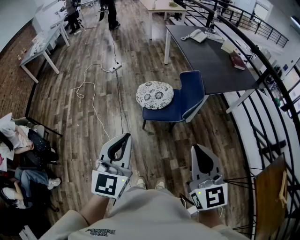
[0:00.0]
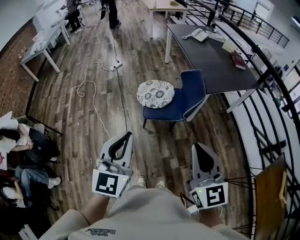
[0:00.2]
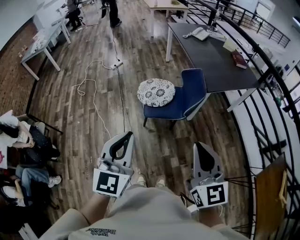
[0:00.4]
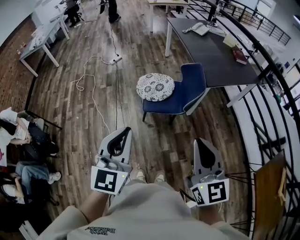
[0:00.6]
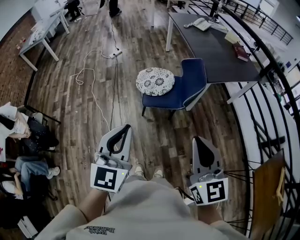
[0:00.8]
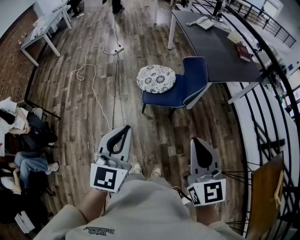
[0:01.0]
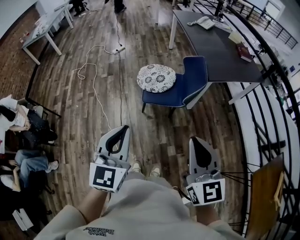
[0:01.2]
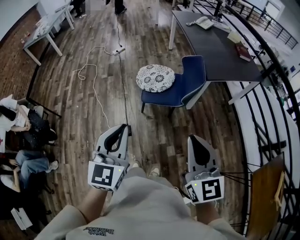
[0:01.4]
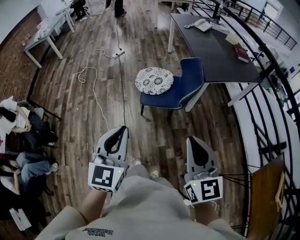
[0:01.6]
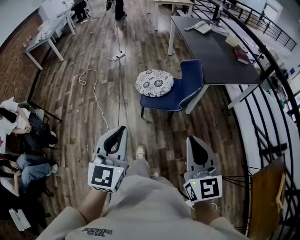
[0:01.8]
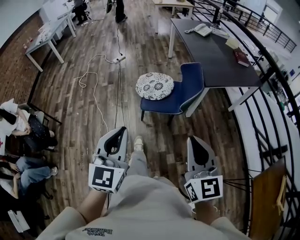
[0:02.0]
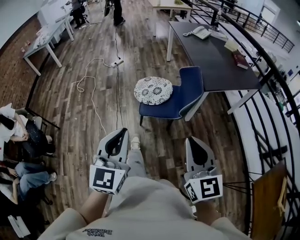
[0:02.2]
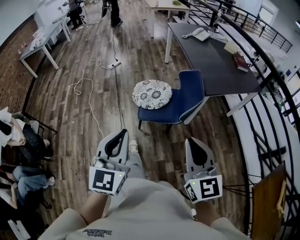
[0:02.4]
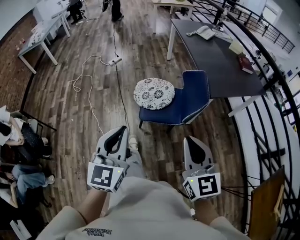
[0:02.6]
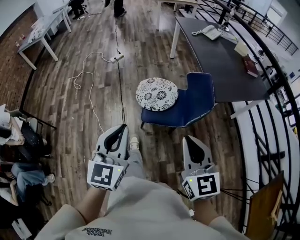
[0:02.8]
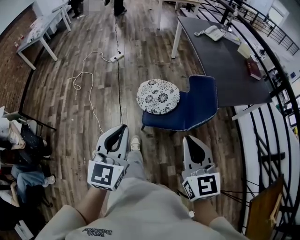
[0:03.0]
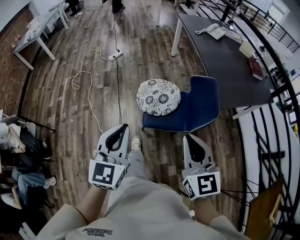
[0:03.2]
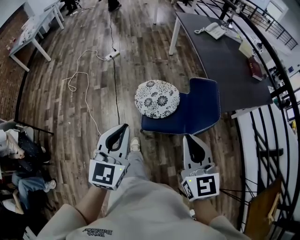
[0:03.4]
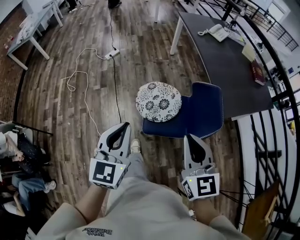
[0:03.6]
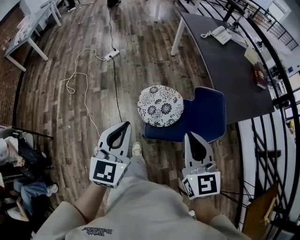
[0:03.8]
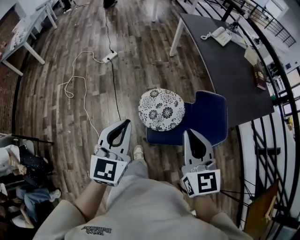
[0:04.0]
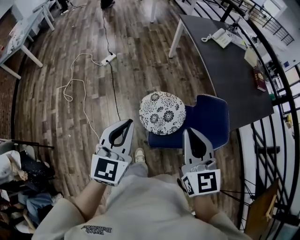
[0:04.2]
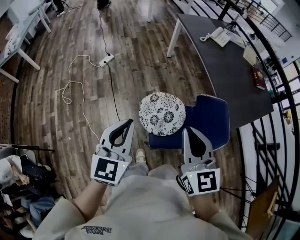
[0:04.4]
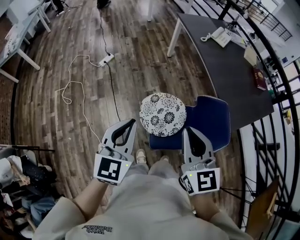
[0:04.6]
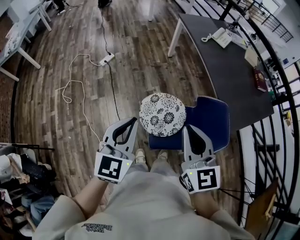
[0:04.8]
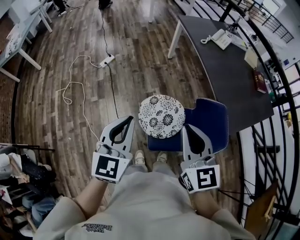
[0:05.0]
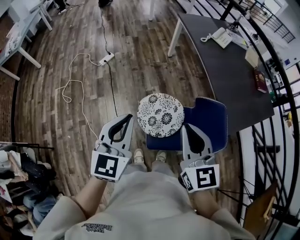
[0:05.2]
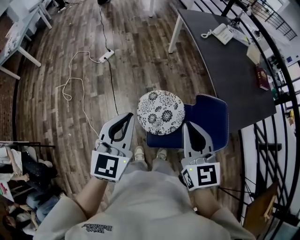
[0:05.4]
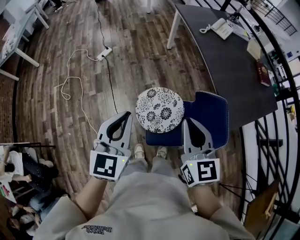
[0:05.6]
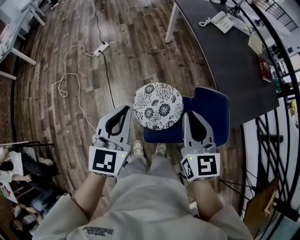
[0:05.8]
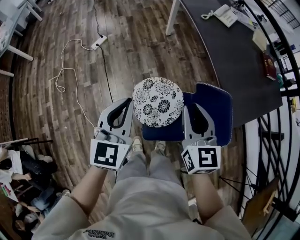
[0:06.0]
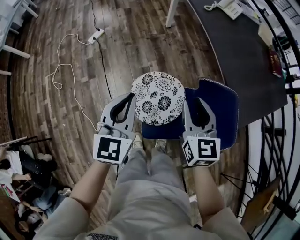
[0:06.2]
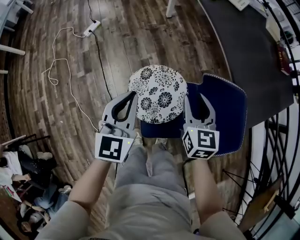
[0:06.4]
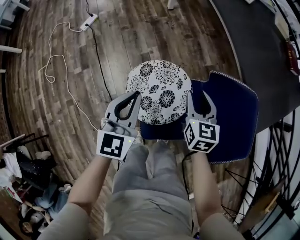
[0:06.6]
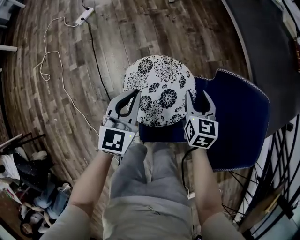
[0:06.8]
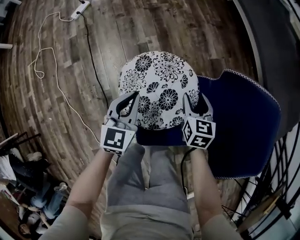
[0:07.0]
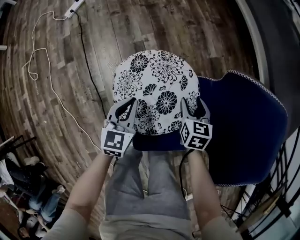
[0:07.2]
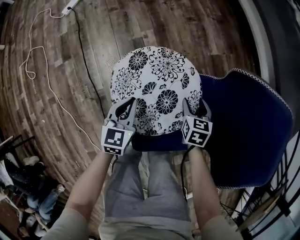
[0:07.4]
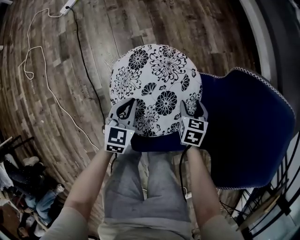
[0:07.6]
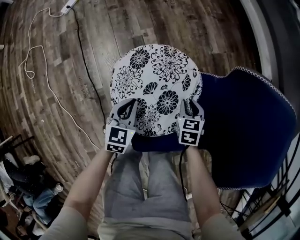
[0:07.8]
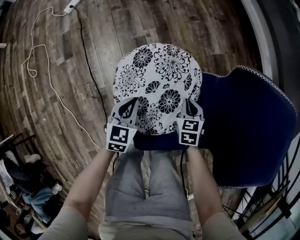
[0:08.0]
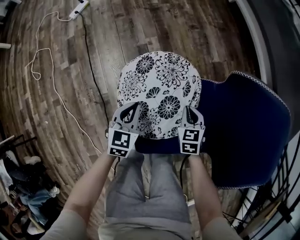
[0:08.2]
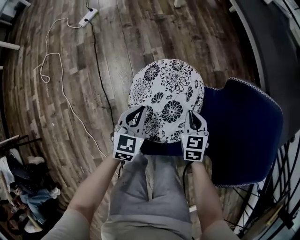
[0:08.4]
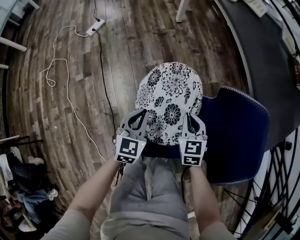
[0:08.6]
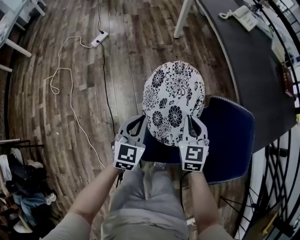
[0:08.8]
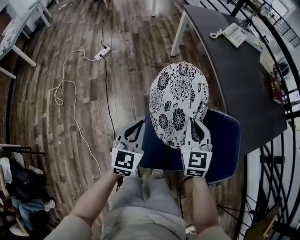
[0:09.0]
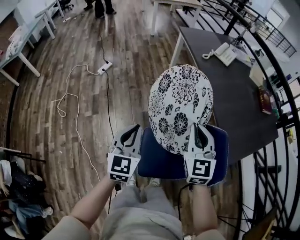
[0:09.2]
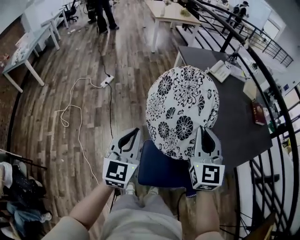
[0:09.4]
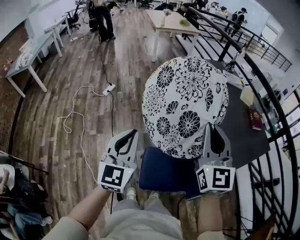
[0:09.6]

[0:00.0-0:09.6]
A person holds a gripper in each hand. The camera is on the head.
0:00.0 to 0:01.6: The right gripper moves roughly 5 cm. Meanwhile the left gripper ends up about 10 cm from where it was.
0:01.6 to 0:03.2: The grippers both shift forward by about 30 cm.
0:03.2 to 0:04.8: The left gripper shifts about 25 cm forward, while the right gripper heads forward and to the left, covering some 30 cm.
0:04.8 to 0:06.4: The grippers both shift downward, forward and to the right by some 30 cm. The right gripper swivels approximately 20 degrees, and opens its fingers.
0:06.4 to 0:08.0: The two grippers go about 40 cm downward. The left gripper rotates approximately 20 degrees; the right gripper changes its angle by roughly 30 degrees, and closes its fingers.
0:08.0 to 0:09.6: The left gripper moves to the left, roughly 5 cm, and reaches approximately 25 cm upward, then returns; the right gripper goes roughly 15 cm upward, and changes its angle by some 20 degrees.

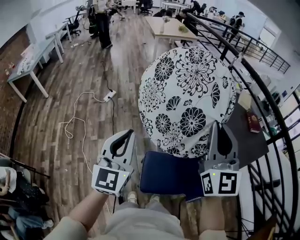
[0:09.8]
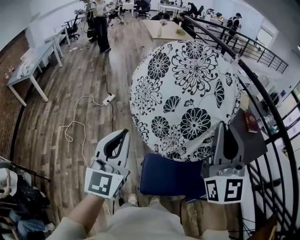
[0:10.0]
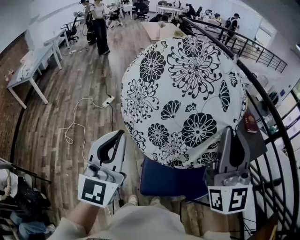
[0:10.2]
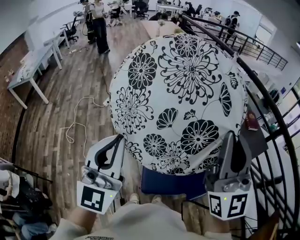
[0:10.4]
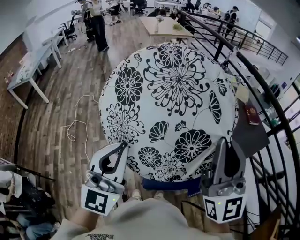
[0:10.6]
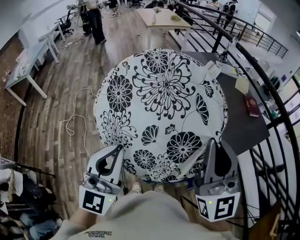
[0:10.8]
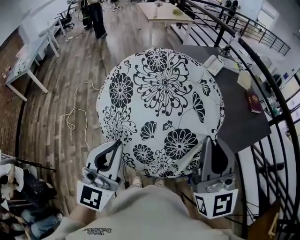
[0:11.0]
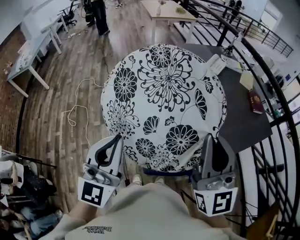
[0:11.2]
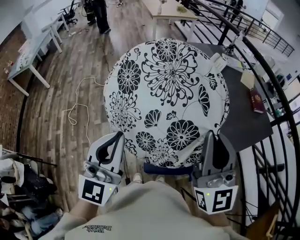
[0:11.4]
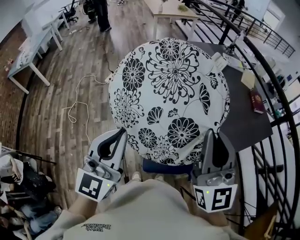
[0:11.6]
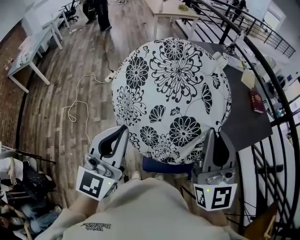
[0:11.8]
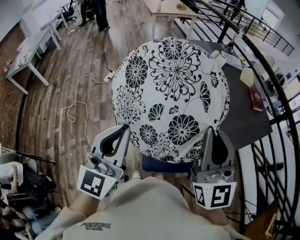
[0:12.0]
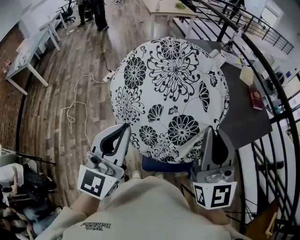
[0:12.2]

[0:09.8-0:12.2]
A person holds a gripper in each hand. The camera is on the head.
0:09.8 to 0:11.0: The left gripper travels forward by approximately 10 cm, and changes its angle by about 30 degrees.
0:11.0 to 0:12.2: The grippers make only small movements.

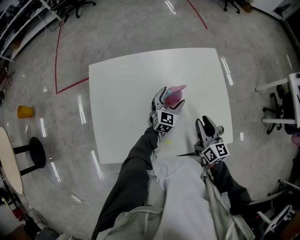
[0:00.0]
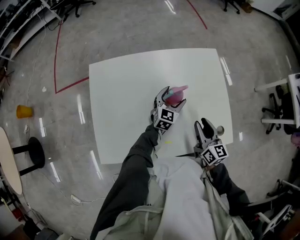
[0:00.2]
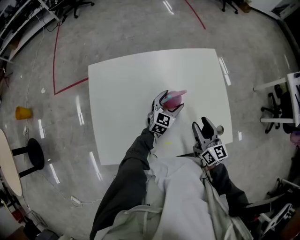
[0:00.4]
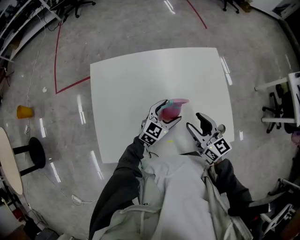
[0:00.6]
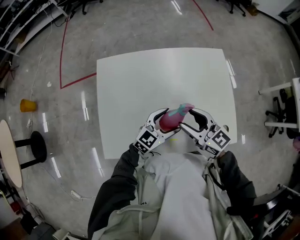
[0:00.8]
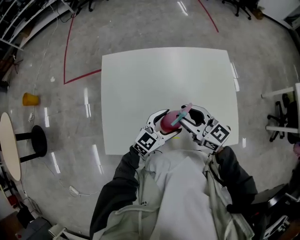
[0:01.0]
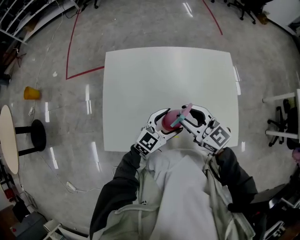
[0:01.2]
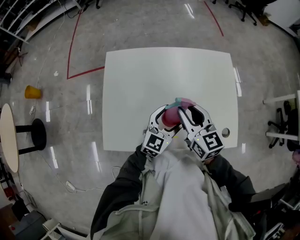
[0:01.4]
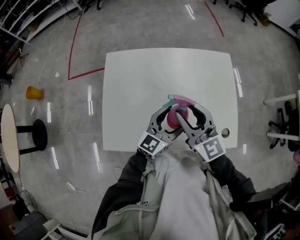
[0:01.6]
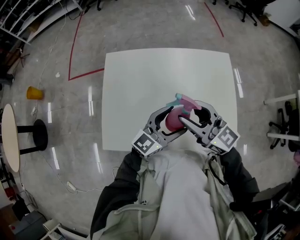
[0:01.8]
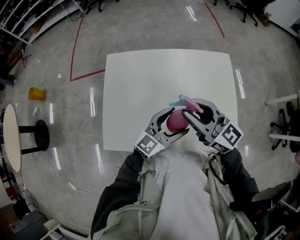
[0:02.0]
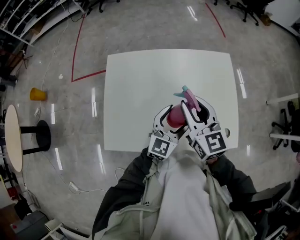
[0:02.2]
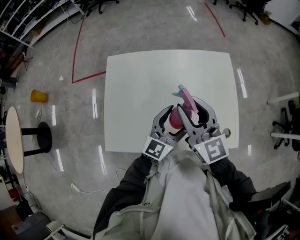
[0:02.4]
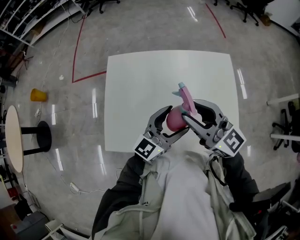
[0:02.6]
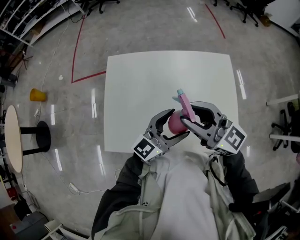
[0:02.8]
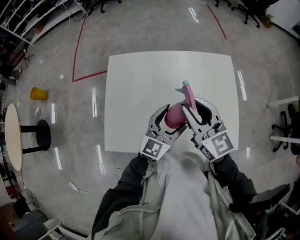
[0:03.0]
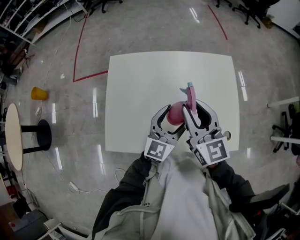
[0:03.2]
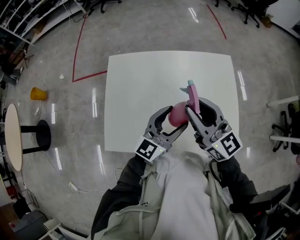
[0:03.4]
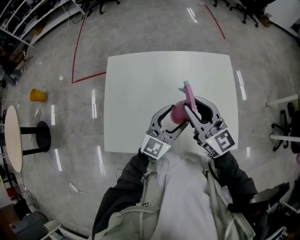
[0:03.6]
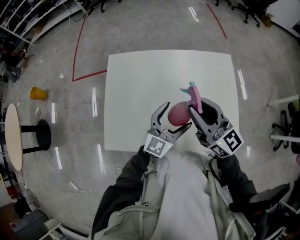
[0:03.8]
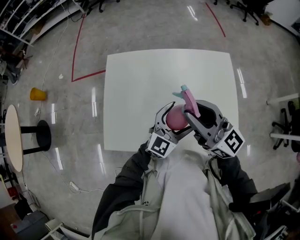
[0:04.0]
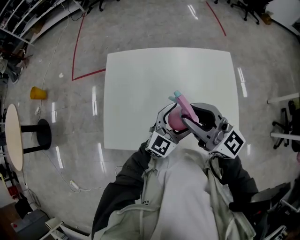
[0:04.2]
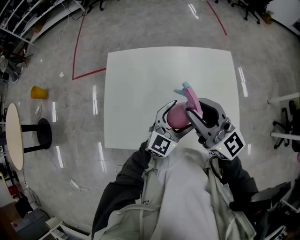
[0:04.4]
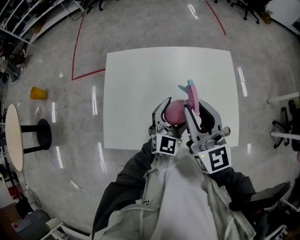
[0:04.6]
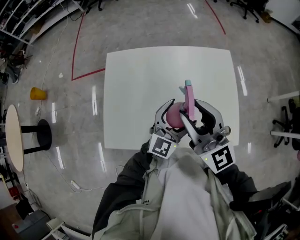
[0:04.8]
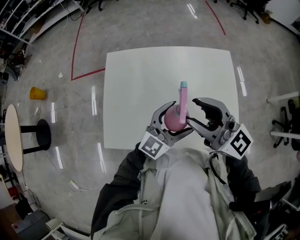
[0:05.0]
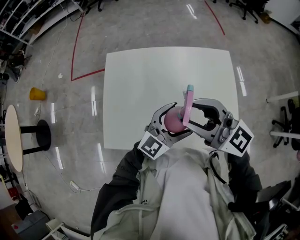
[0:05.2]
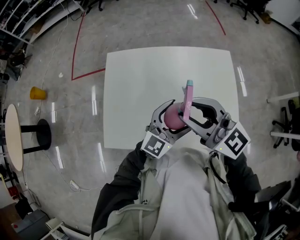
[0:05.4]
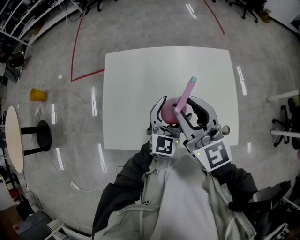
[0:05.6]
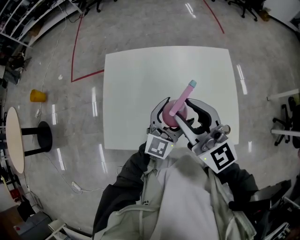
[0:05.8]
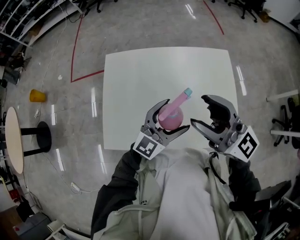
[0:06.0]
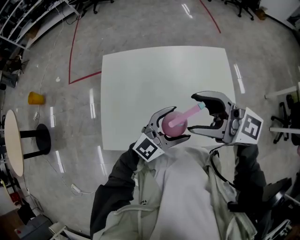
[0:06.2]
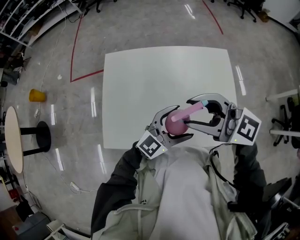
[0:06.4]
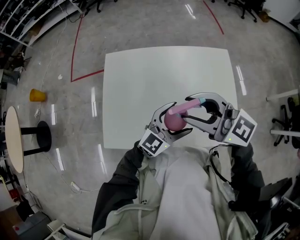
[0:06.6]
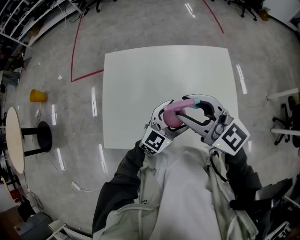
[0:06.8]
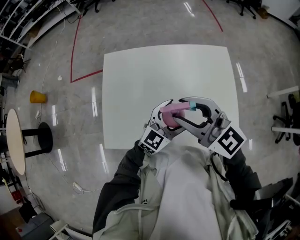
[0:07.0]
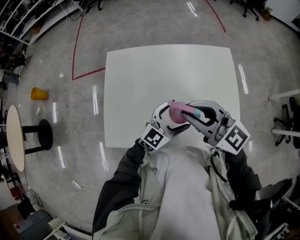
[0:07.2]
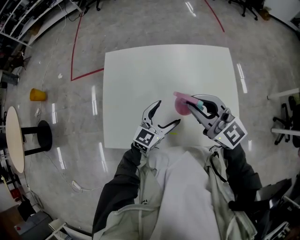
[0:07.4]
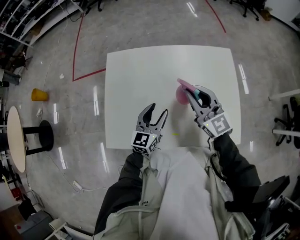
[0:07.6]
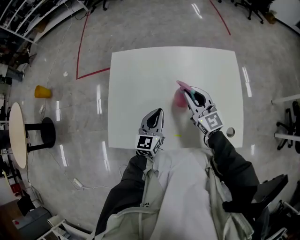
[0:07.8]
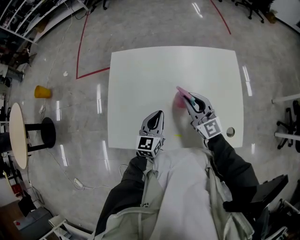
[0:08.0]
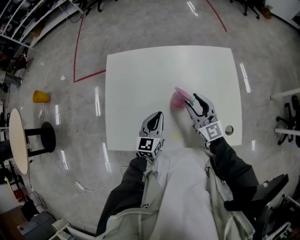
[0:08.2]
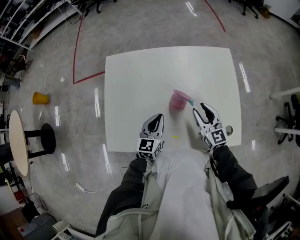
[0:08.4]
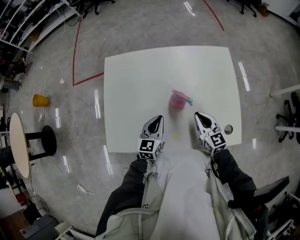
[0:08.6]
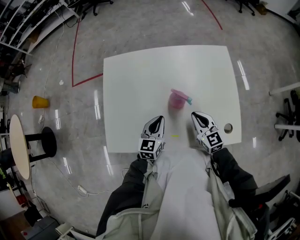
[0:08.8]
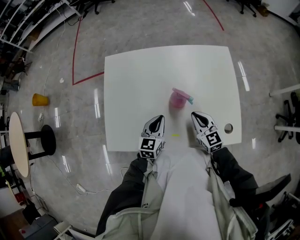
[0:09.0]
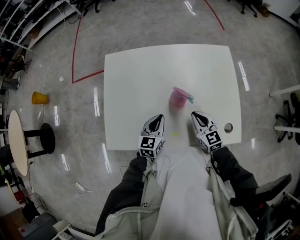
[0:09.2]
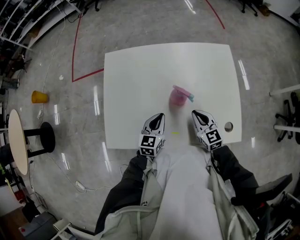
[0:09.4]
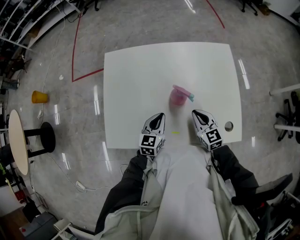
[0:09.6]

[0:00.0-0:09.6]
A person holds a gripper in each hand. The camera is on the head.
0:00.0 to 0:01.6: The left gripper is displaced upward and backward by about 20 cm, and rotates about 20 degrees; the right gripper goes approximately 20 cm to the left and upward, and changes its angle by about 40 degrees.
0:03.2 to 0:04.8: The right gripper moves some 5 cm.
0:04.8 to 0:06.4: The right gripper rotates approximately 40 degrees. The left gripper changes its angle by some 20 degrees.
0:06.4 to 0:08.0: The left gripper changes place by approximately 20 cm, rotates roughly 50 degrees, and closes its fingers, while the right gripper heads downward, covering roughly 20 cm, rotates about 40 degrees, and closes.
0:08.0 to 0:09.6: The right gripper heads downward, backward and to the right, covering some 15 cm, turns by some 30 degrees, and opens, then closes once more; the left gripper ends up about 5 cm from where it was.

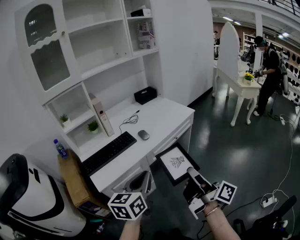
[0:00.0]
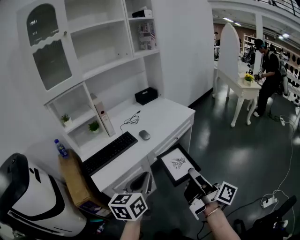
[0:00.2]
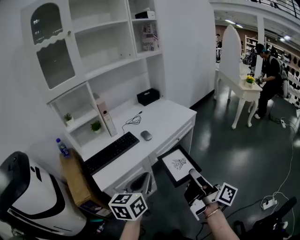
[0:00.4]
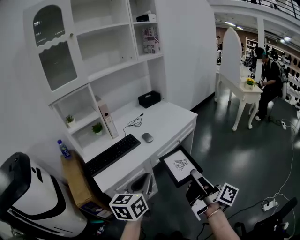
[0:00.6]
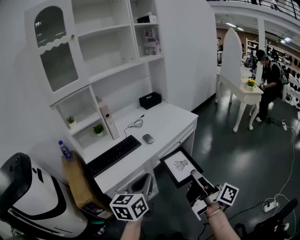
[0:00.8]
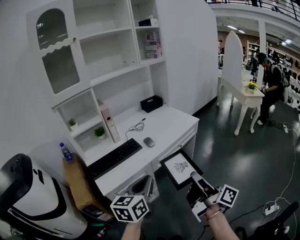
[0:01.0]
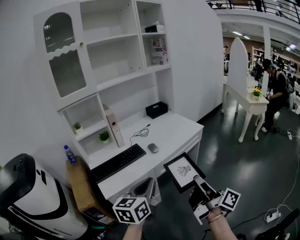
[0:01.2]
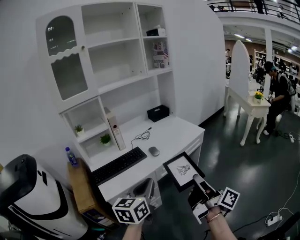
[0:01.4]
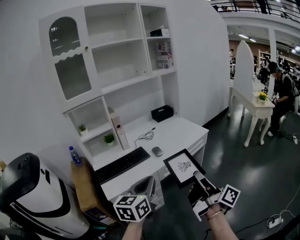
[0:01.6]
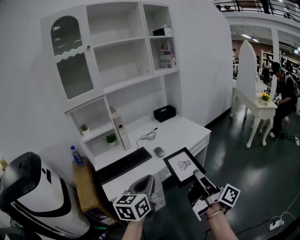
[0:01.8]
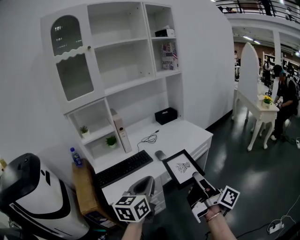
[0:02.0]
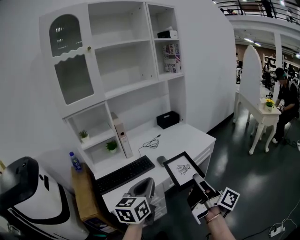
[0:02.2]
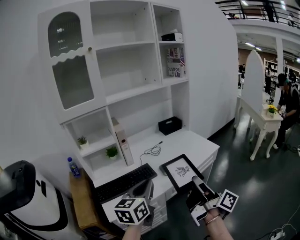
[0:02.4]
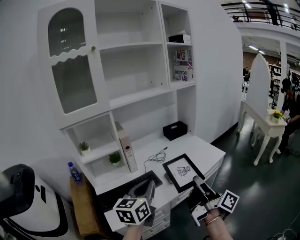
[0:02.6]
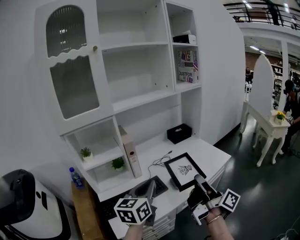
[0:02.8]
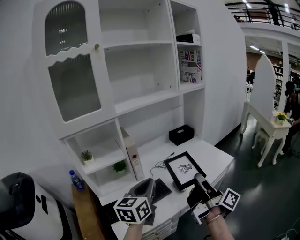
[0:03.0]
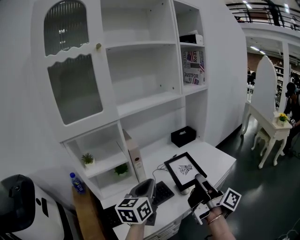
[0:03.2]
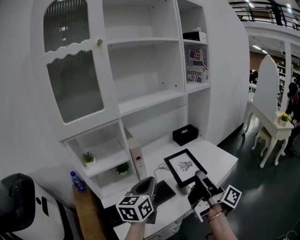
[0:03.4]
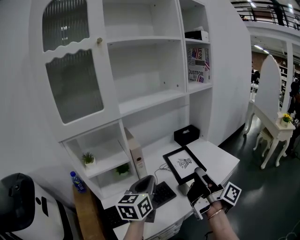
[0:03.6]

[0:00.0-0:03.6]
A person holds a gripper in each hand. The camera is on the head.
0:00.0 to 0:01.8: The right gripper shifts by roughly 5 cm.
0:01.8 to 0:03.6: Both grippers move forward and to the left, about 35 cm.
